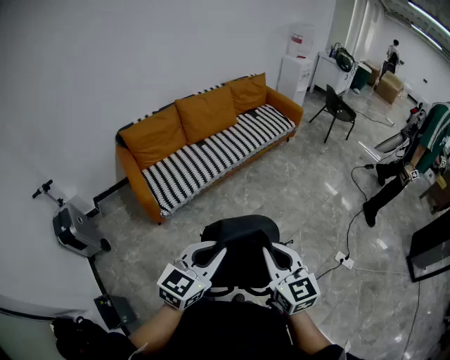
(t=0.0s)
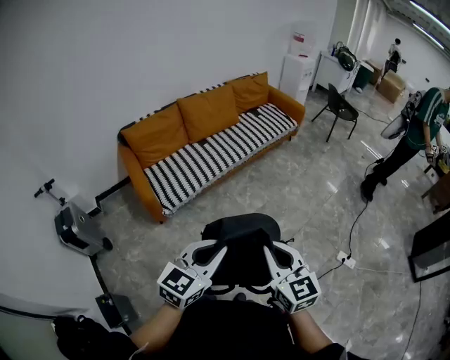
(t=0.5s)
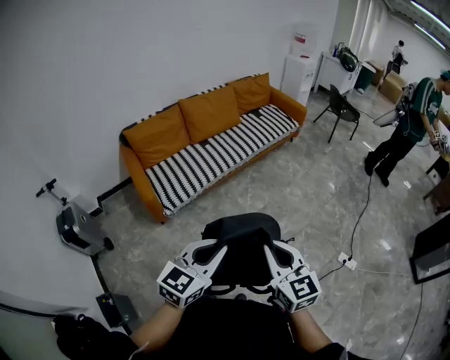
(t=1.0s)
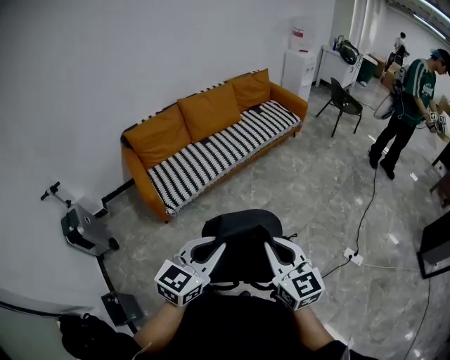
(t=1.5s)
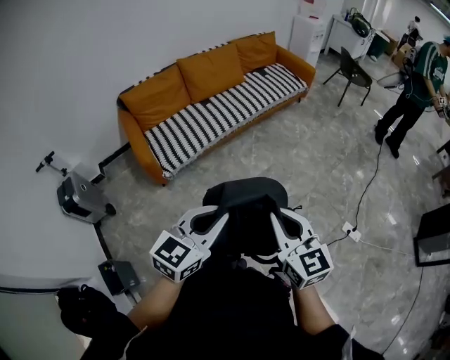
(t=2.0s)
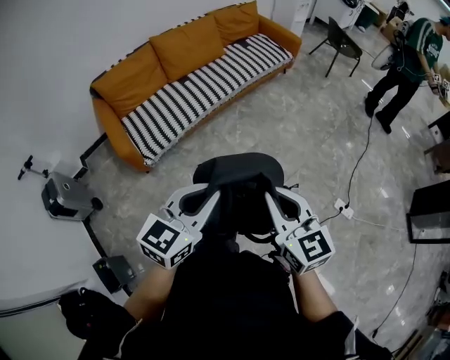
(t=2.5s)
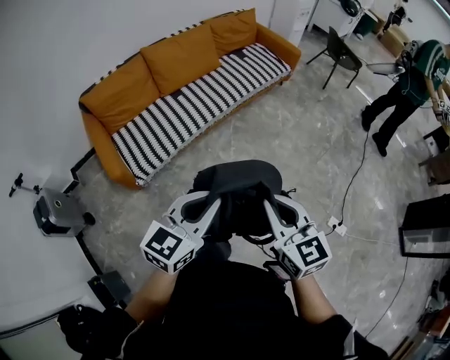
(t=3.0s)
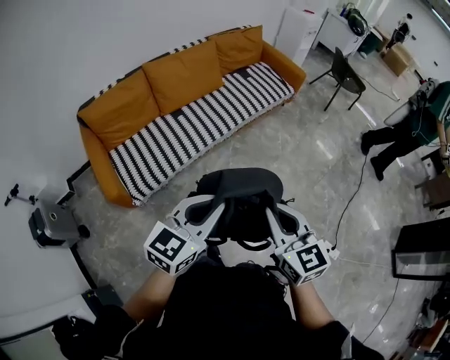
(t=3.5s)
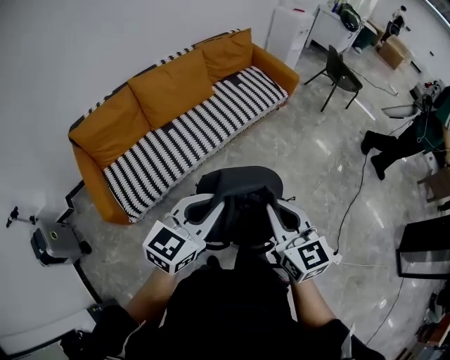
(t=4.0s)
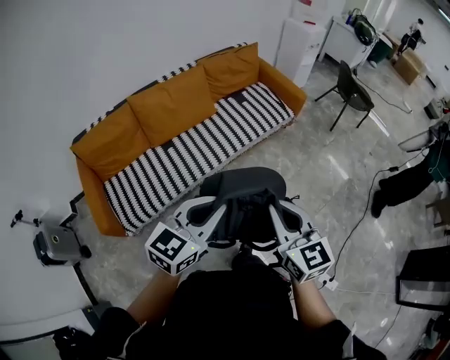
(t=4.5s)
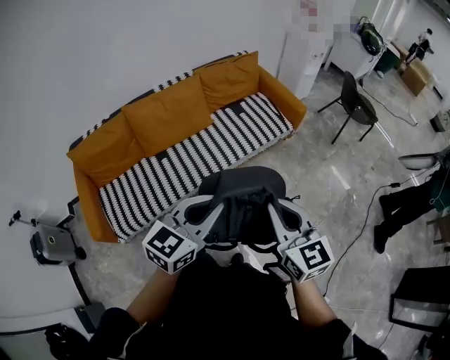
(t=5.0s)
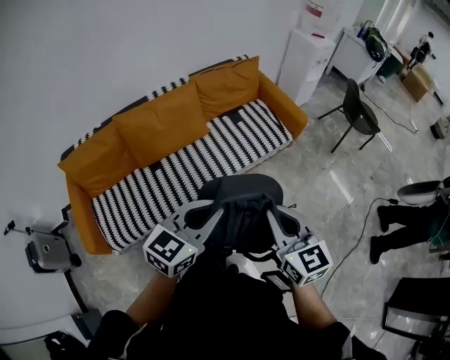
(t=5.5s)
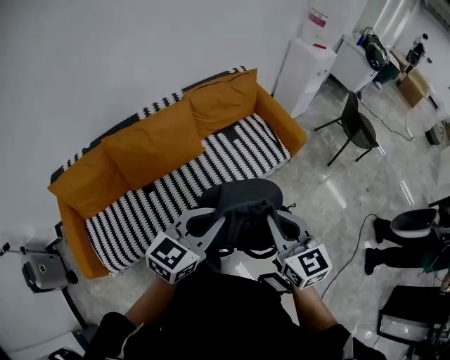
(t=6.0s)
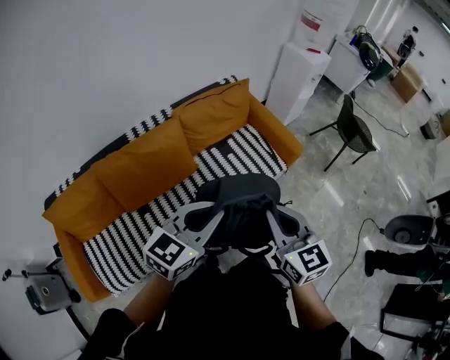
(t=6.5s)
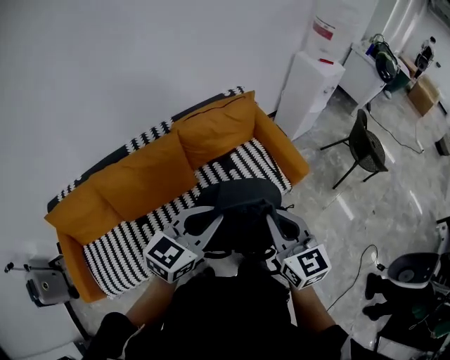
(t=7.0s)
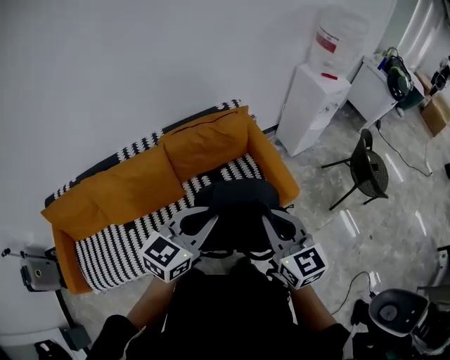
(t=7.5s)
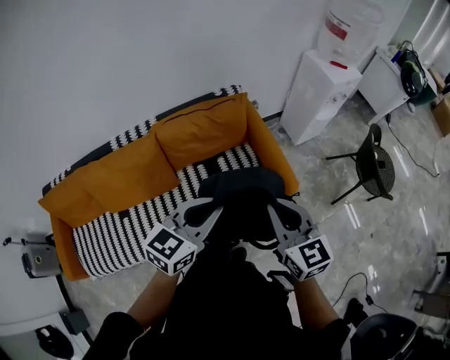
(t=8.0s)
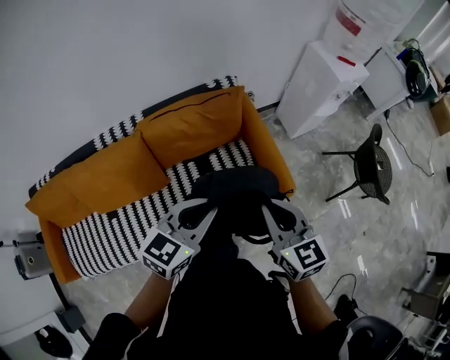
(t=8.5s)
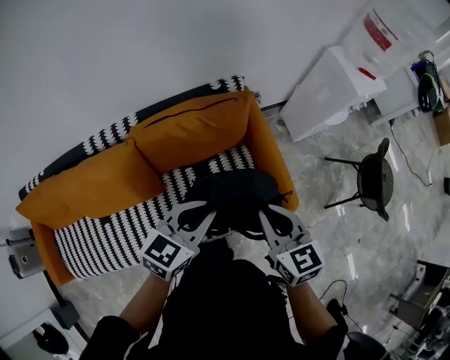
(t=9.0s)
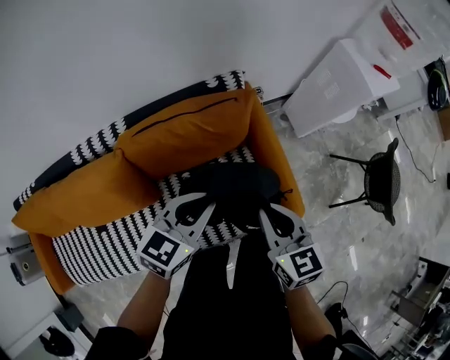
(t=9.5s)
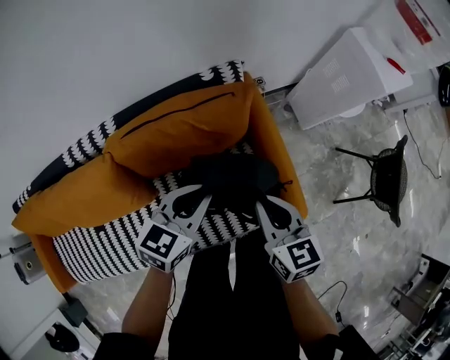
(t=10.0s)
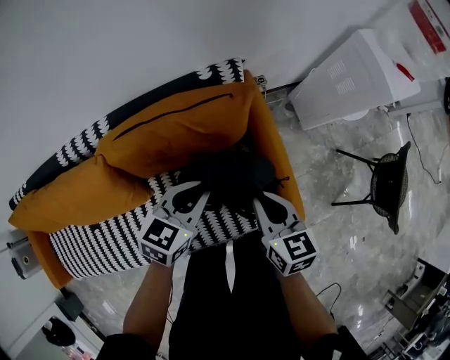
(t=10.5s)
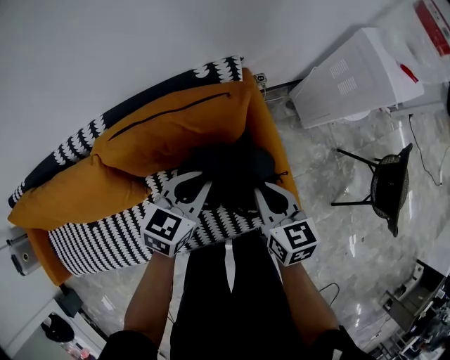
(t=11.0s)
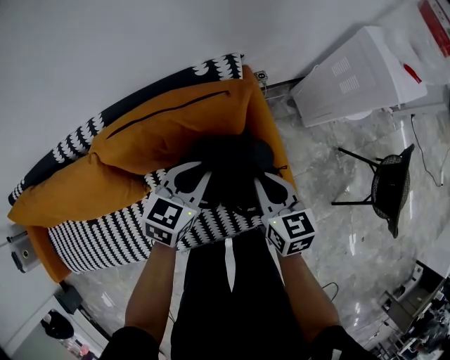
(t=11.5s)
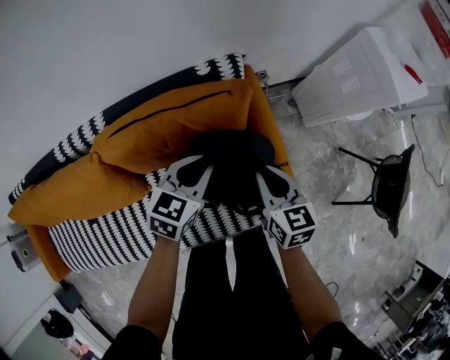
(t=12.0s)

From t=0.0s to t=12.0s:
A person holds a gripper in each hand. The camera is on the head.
From t=0.0s to t=2.0s: The grippers make only small movements.
From t=2.0s to t=4.0s: Both grippers move forward, roughly 35 cm.
From t=4.0s to t=6.0s: Both grippers are carried forward, some 40 cm.
From t=6.0s to t=8.0s: Both grippers move forward and to the right, some 40 cm.
From t=8.0s to t=10.0s: The grippers both shift forward and downward by some 30 cm.
From t=10.0s to t=12.0s: The two grippers go approximately 10 cm forward and downward.

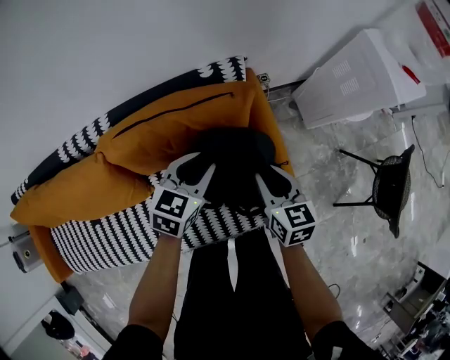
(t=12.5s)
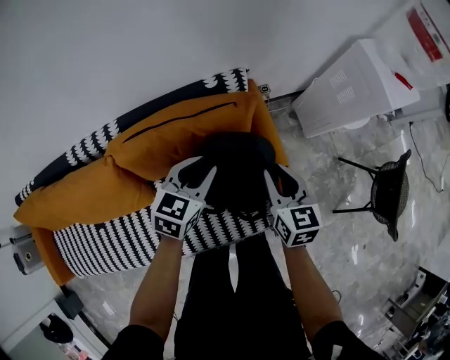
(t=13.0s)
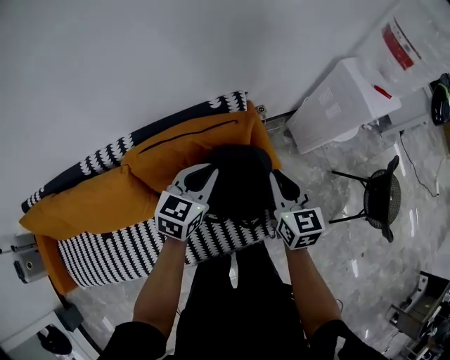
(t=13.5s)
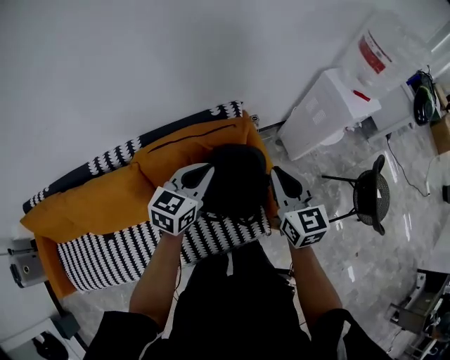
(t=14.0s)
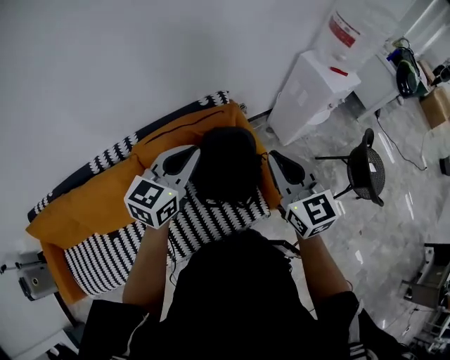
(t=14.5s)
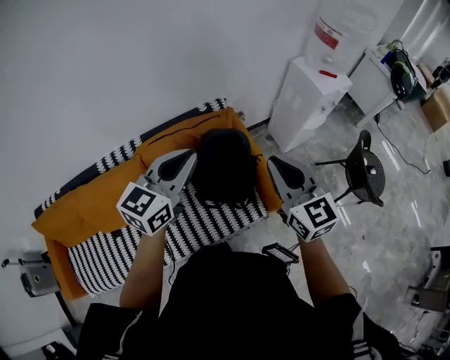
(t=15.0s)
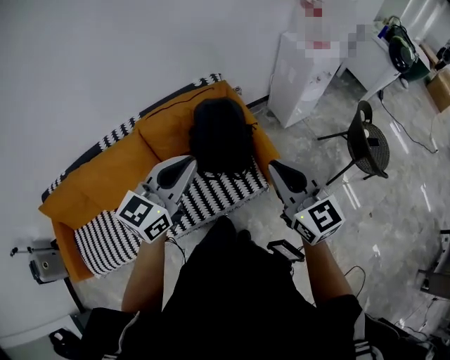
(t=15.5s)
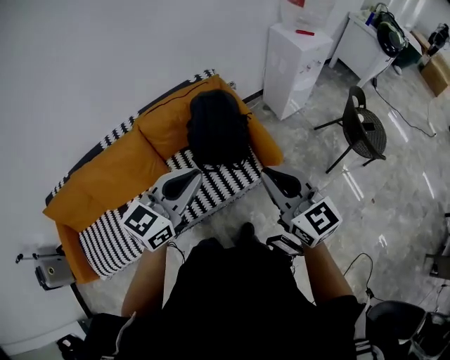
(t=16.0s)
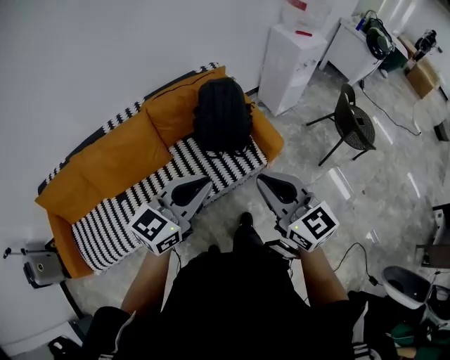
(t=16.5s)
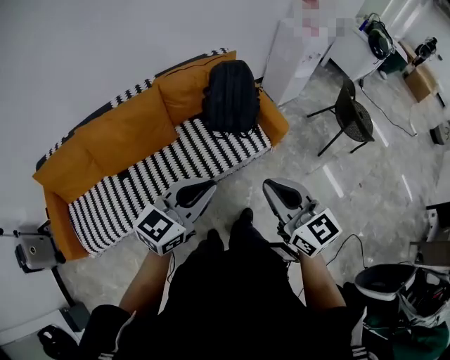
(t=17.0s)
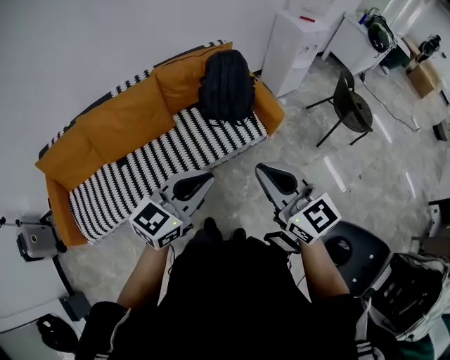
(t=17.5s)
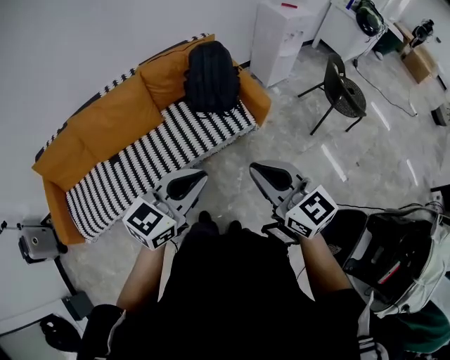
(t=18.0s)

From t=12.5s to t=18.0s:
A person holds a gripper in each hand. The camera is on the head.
From t=12.5s to t=14.5s: Both grippers move upward, some 30 cm. The left gripper rotates some 20 degrees, and closes; the right gripper changes its angle by approximately 30 degrees.
From t=14.5s to t=16.0s: The left gripper goes approximately 30 cm backward and to the right. The right gripper travels backward by about 25 cm.
From t=16.0s to t=18.0s: The grippers both shift backward by approximately 30 cm.

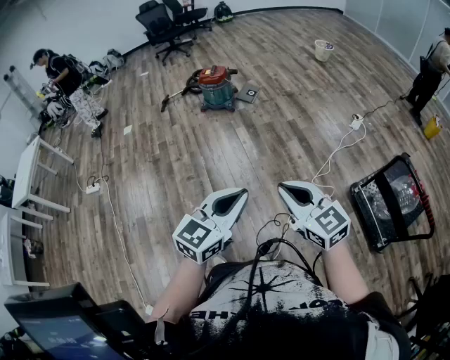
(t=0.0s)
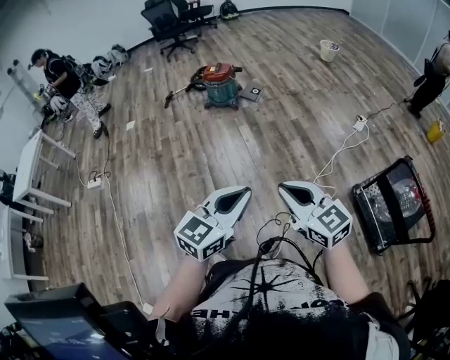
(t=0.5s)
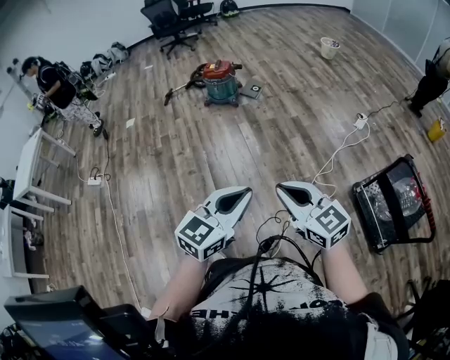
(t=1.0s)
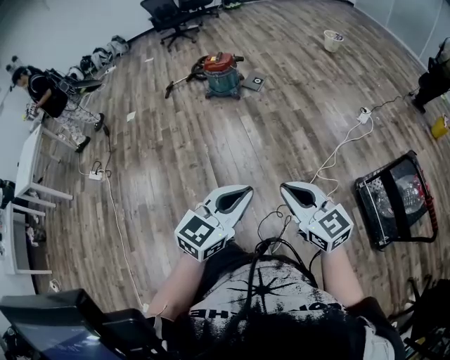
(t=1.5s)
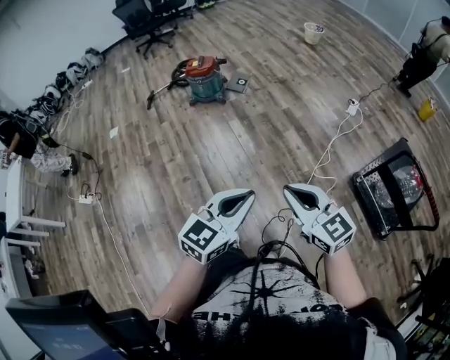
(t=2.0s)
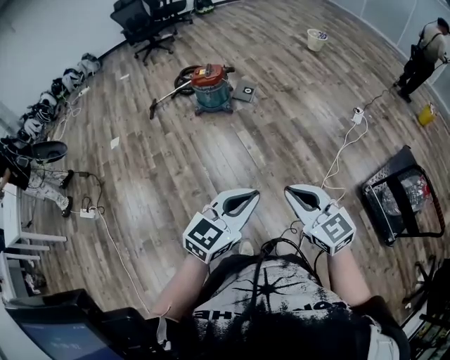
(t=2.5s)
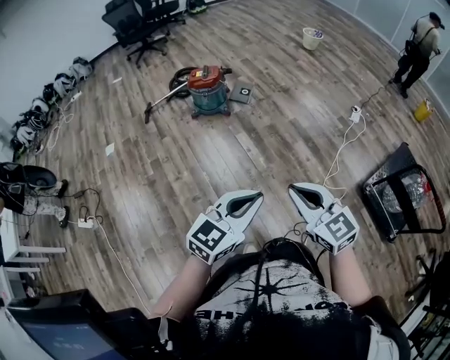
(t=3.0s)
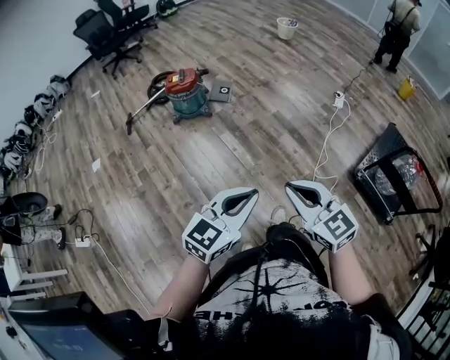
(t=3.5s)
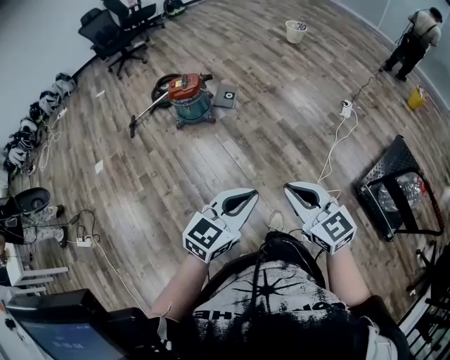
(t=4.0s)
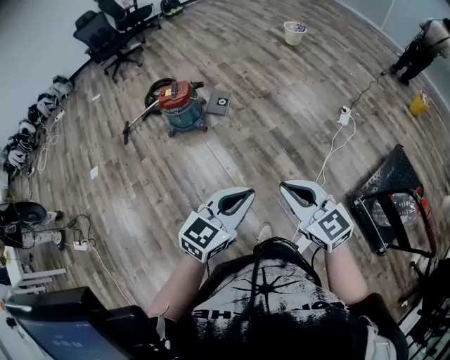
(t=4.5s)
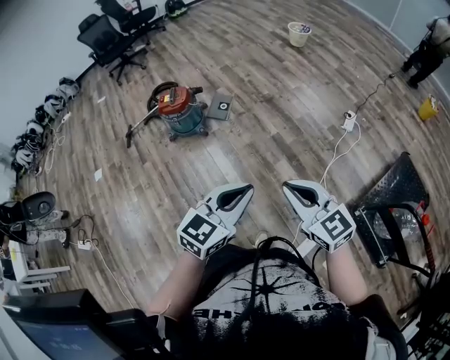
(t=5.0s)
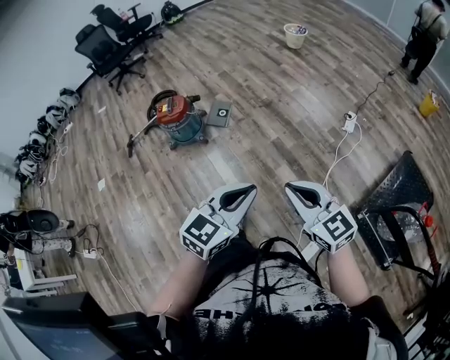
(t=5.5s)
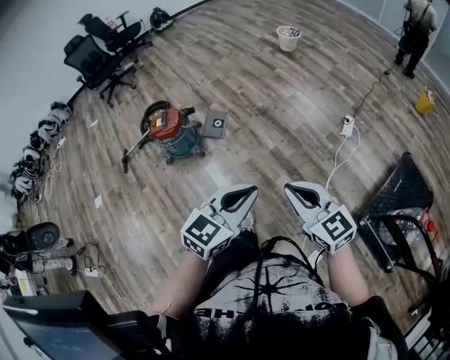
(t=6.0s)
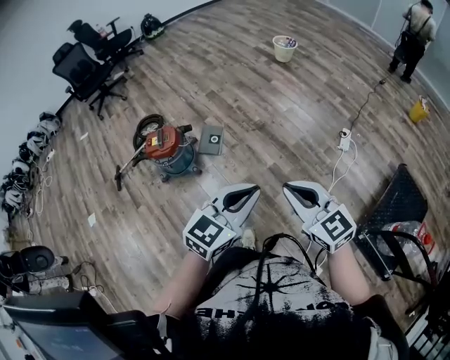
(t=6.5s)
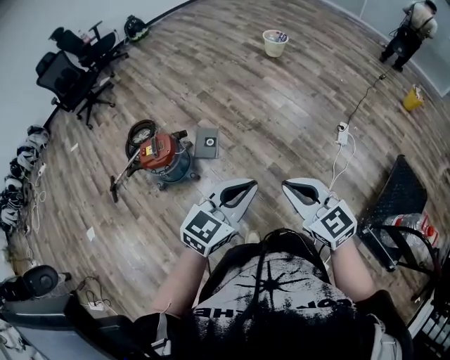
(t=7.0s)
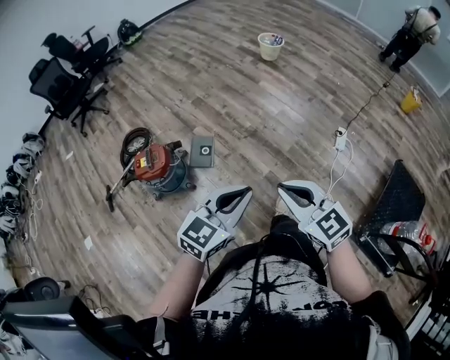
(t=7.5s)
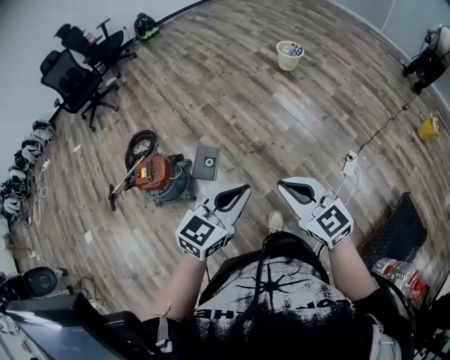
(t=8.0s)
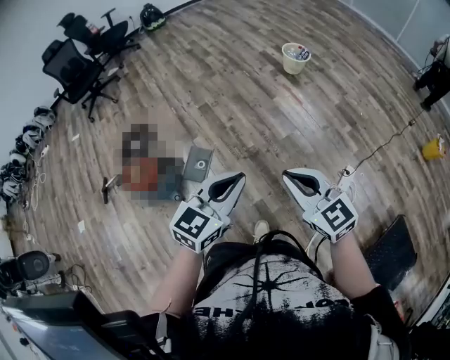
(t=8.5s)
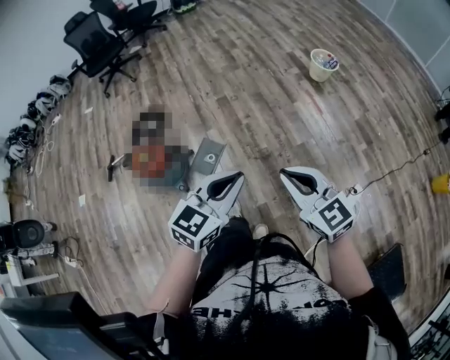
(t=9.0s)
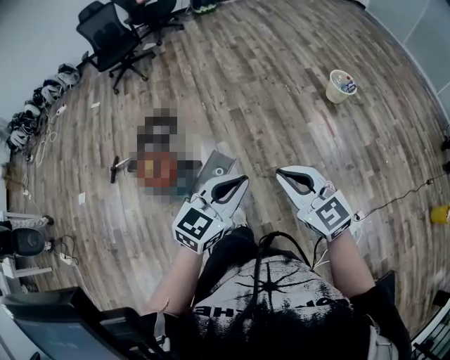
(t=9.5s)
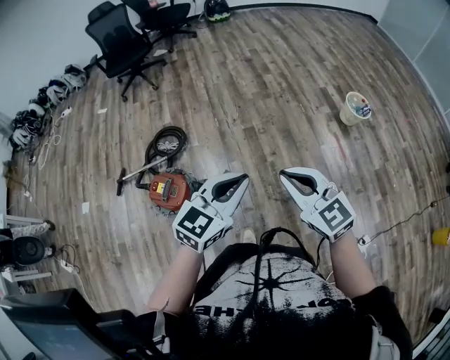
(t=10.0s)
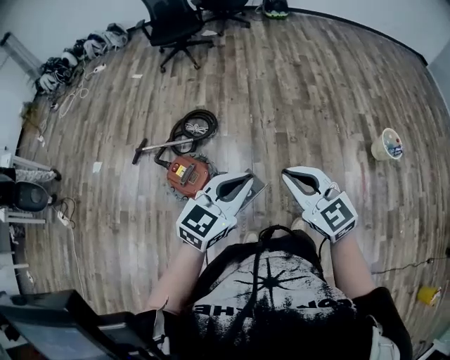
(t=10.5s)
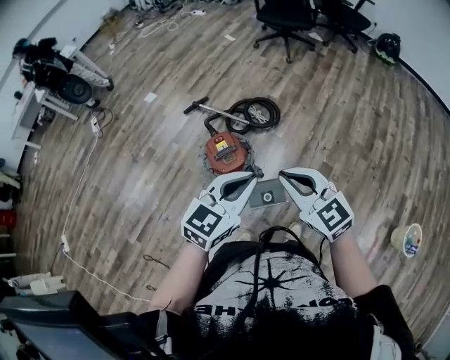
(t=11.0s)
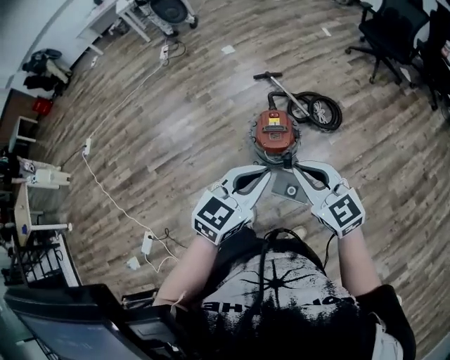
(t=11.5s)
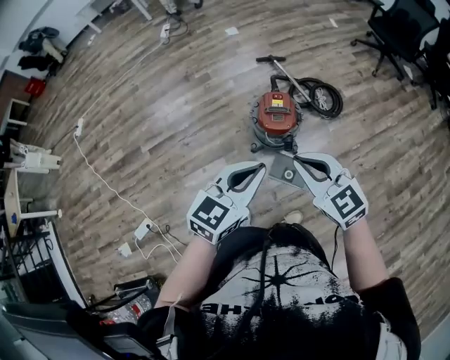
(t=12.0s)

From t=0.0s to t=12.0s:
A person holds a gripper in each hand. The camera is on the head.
From t=0.0s to t=2.0s: Both grippers move forward, some 10 cm.
From t=2.0s to t=4.0s: Both grippers move forward and to the left, roughly 25 cm.
From t=4.0s to t=6.0s: The grippers both shift forward and to the right by some 35 cm.
From t=6.0s to t=8.0s: Both grippers move forward, roughly 40 cm.
From t=8.0s to t=10.0s: The grippers both shift forward by approximately 40 cm. The left gripper turns by approximately 20 degrees. The right gripper rotates about 20 degrees.
From t=10.0s to t=12.0s: The left gripper moves roughly 15 cm, and swivels some 80 degrees; the right gripper shifts by some 20 cm, and rotates about 80 degrees.
